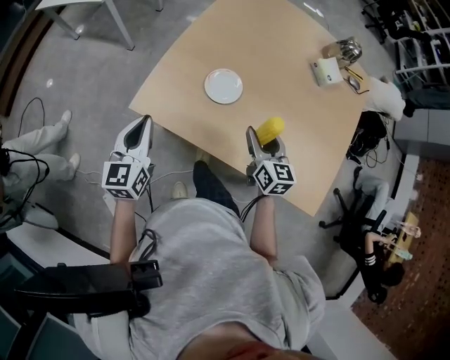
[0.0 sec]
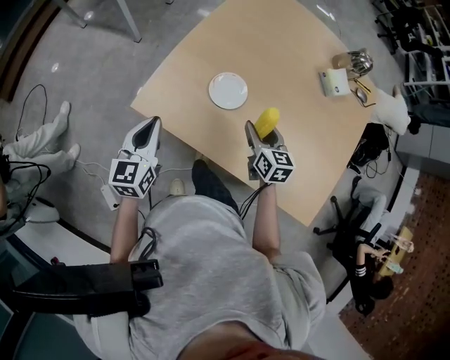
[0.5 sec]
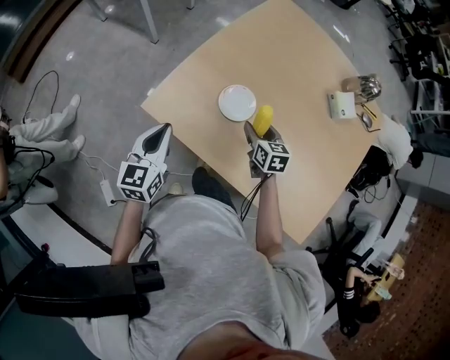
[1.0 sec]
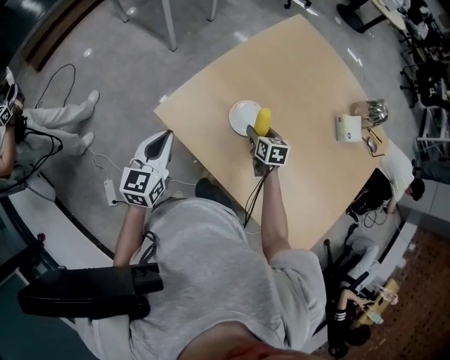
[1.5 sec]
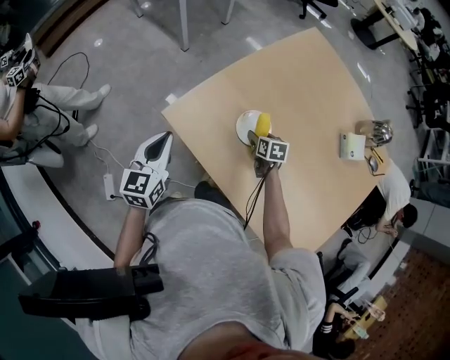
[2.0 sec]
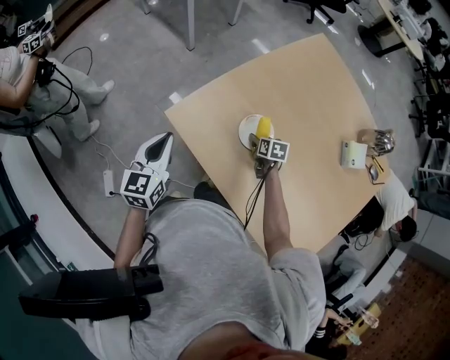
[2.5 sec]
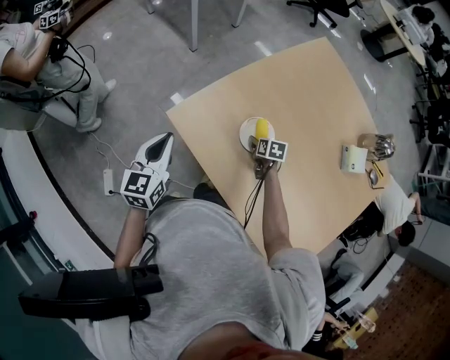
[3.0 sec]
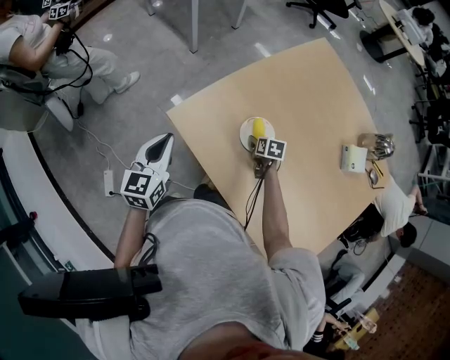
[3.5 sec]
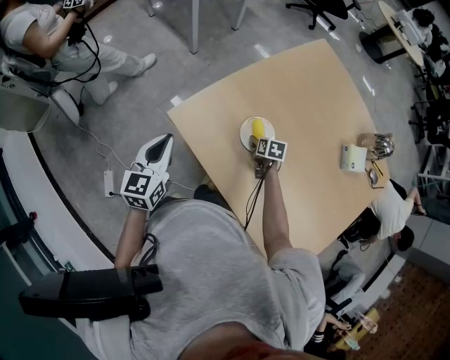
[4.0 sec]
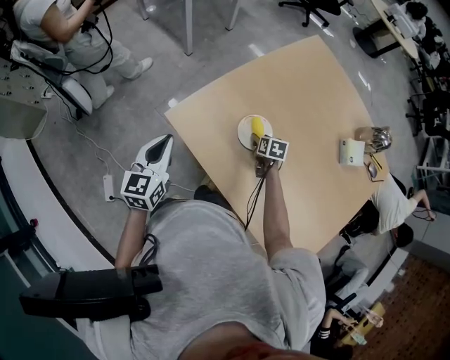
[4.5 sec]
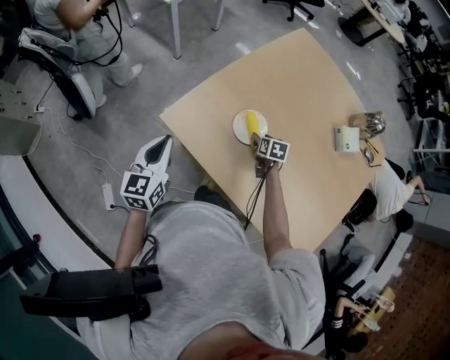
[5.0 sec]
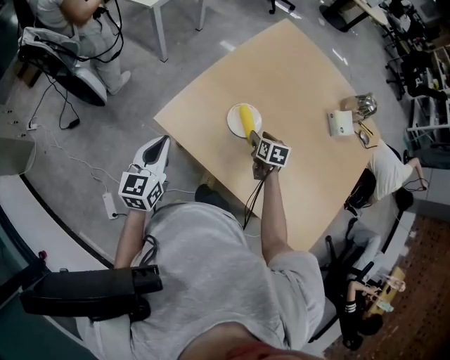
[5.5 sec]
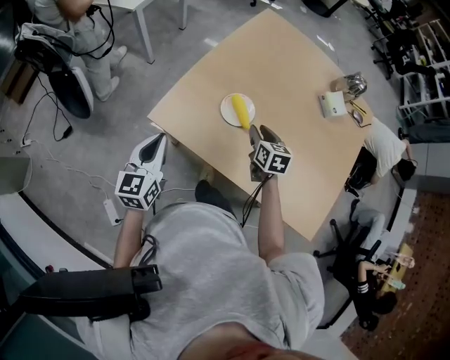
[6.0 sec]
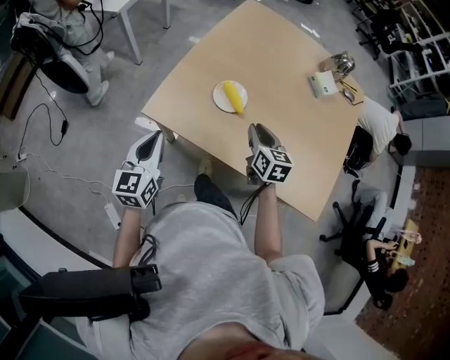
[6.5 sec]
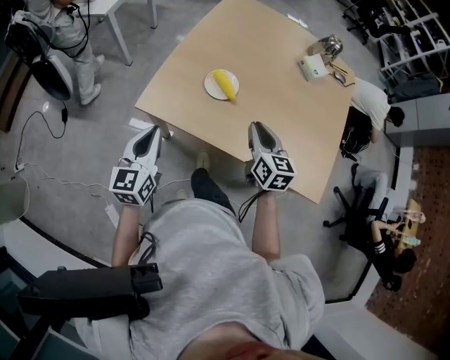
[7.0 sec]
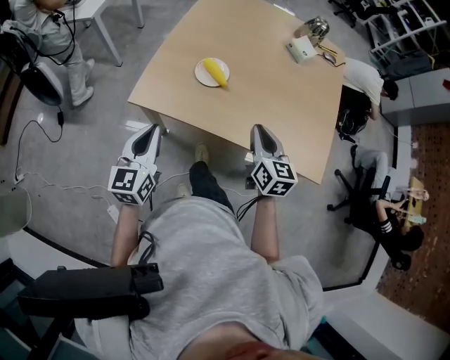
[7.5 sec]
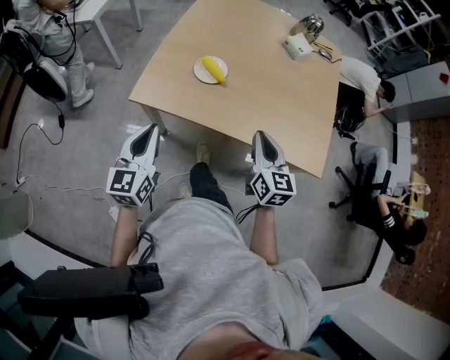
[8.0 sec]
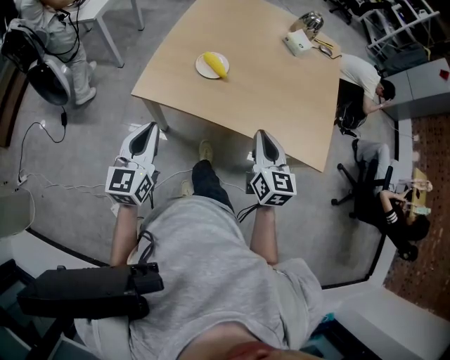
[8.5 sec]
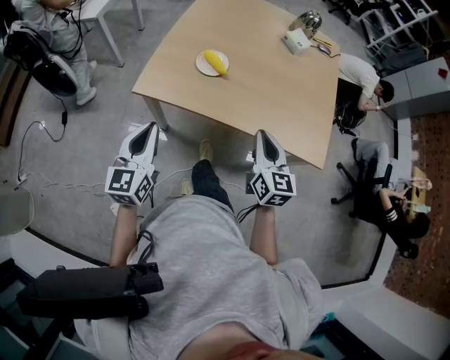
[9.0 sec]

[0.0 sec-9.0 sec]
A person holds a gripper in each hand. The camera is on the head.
0.0 sec to 2.0 sec: The right gripper travels downward and forward by some 25 cm, and tips its fingers downward by some 30 degrees.
2.0 sec to 4.5 sec: The grippers move only a little.
4.5 sec to 7.0 sec: The left gripper moves about 10 cm, and turns by approximately 20 degrees, while the right gripper goes some 25 cm upward, points its fingers roughly 40 degrees further upward, and closes its fingers.
7.0 sec to 9.0 sec: The left gripper is displaced backward by roughly 10 cm. The right gripper moves backward, roughly 15 cm.

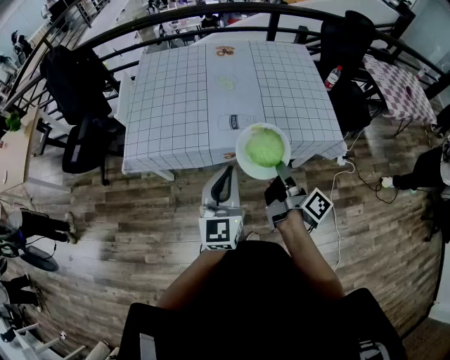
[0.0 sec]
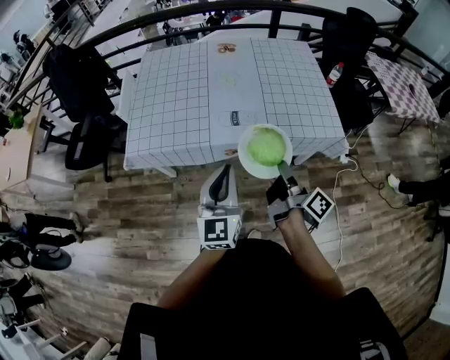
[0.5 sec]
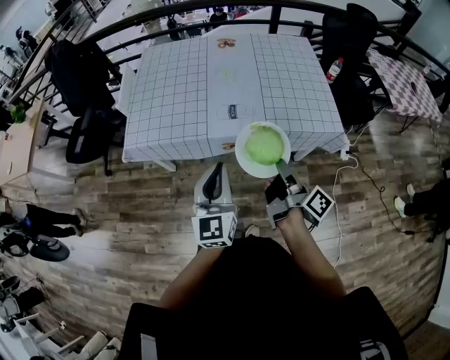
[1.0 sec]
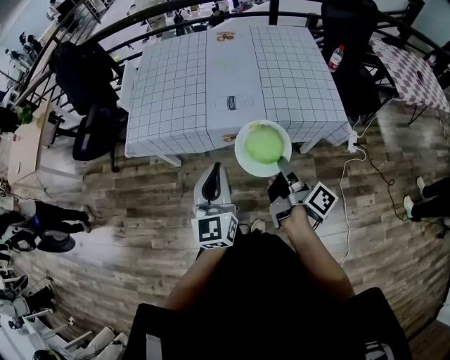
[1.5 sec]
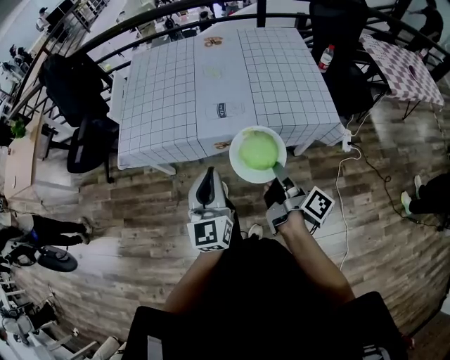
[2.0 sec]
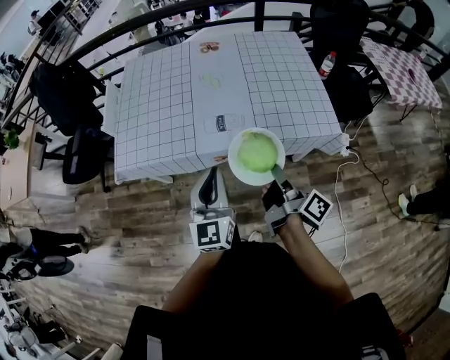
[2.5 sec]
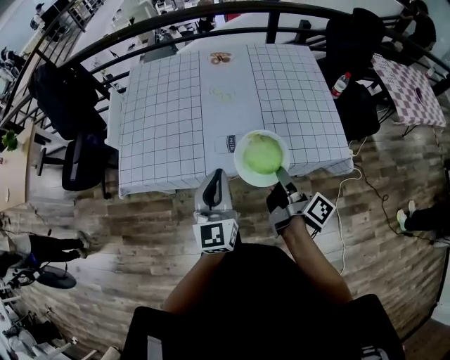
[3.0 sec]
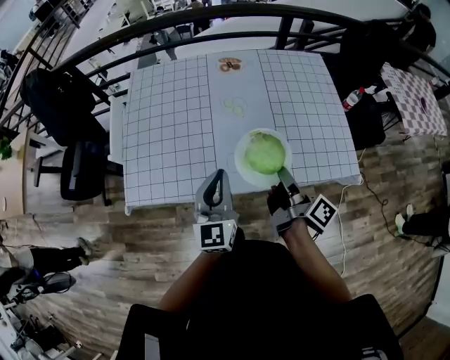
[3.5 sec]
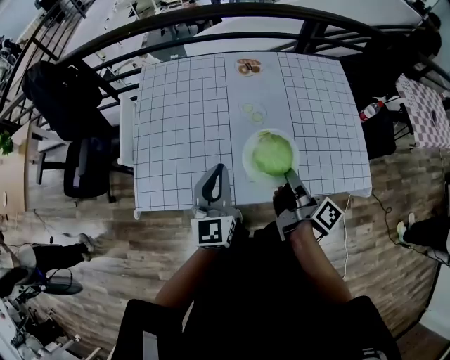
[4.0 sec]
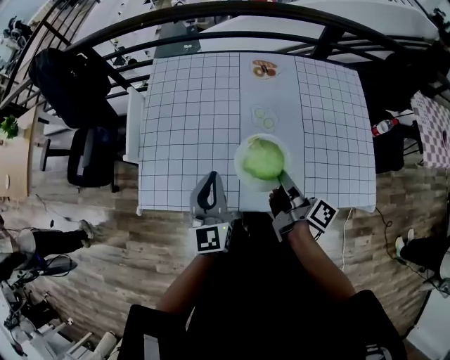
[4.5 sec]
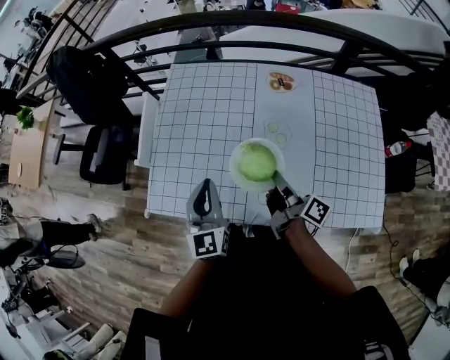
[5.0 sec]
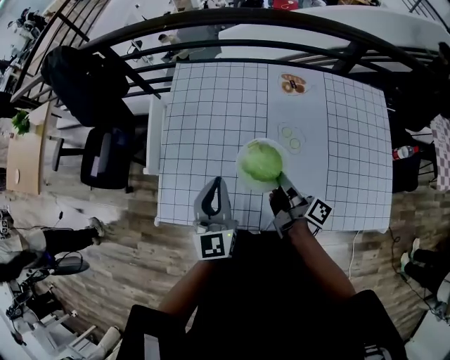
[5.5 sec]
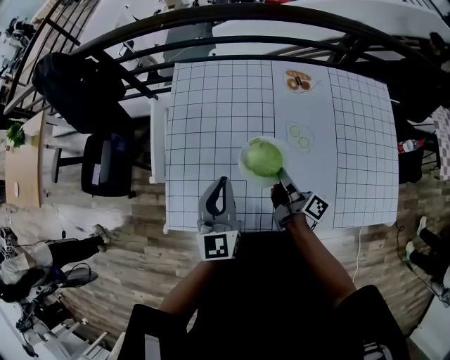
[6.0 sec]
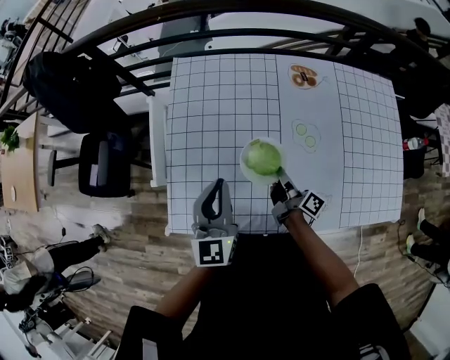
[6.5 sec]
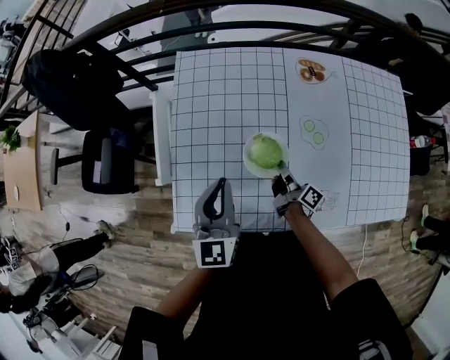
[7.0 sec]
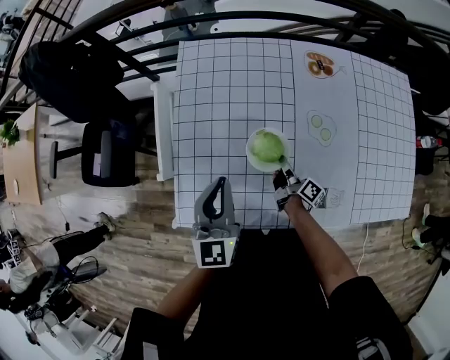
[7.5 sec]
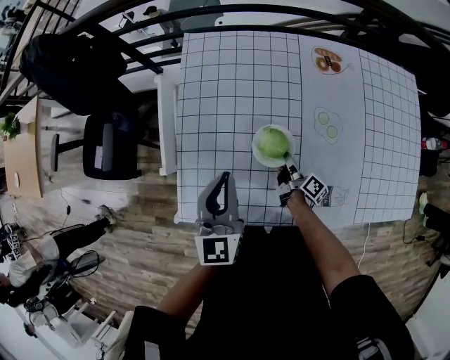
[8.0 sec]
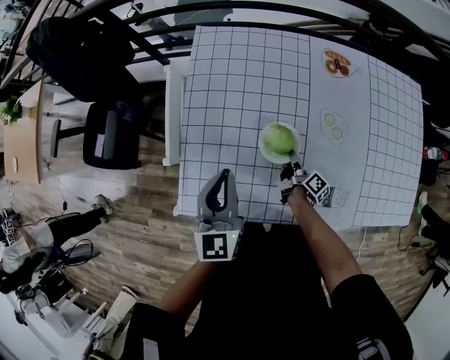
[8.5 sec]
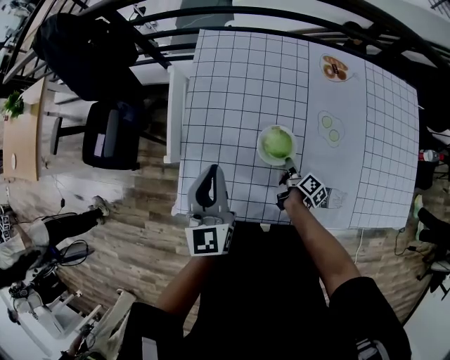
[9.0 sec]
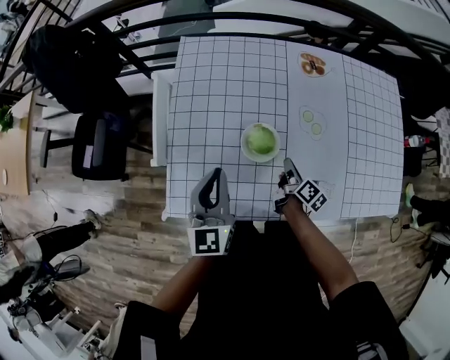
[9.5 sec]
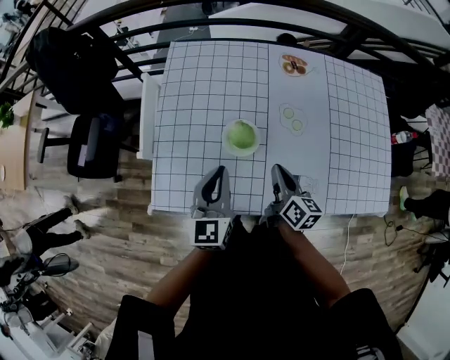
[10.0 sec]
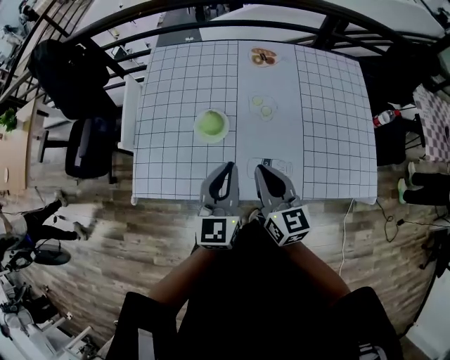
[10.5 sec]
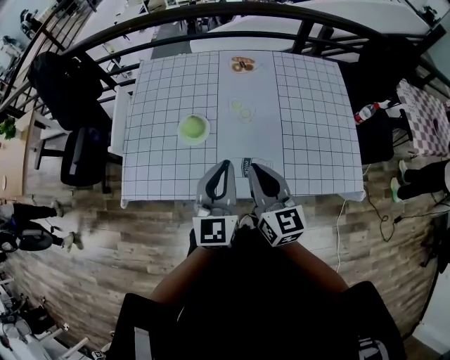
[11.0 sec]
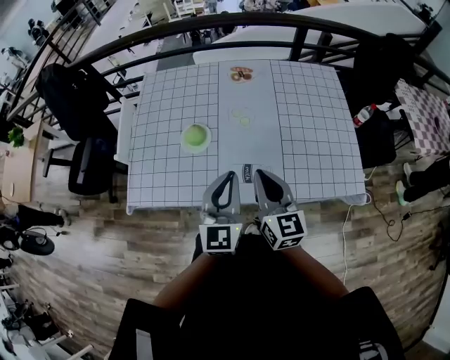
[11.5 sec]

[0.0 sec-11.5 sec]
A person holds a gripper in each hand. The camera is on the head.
0.0 sec to 2.0 sec: The left gripper ends up some 5 cm from where it was; the right gripper shifts approximately 10 cm to the right and backward.
2.0 sec to 4.0 sec: Both grippers travel together forward, approximately 35 cm.
4.0 sec to 6.0 sec: The right gripper is displaced forward, to the left and downward by roughly 25 cm. Meanwhile the left gripper travels forward and to the left by roughly 20 cm.
6.0 sec to 7.5 sec: The right gripper travels downward by approximately 15 cm; the left gripper shifts some 5 cm to the left.
7.5 sec to 9.5 sec: The right gripper moves roughly 5 cm.
9.5 sec to 11.5 sec: The right gripper is displaced upward, backward and to the right by approximately 35 cm, and rolls counterclockwise, seen from behind, by some 50 degrees. Meanwhile the left gripper shifts roughly 35 cm to the right and backward.

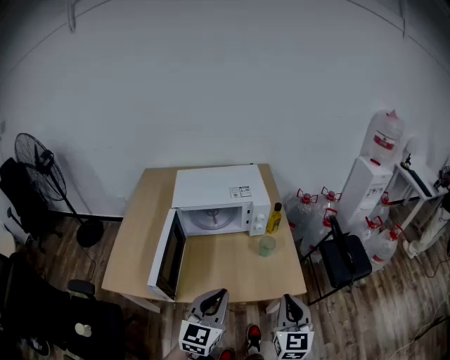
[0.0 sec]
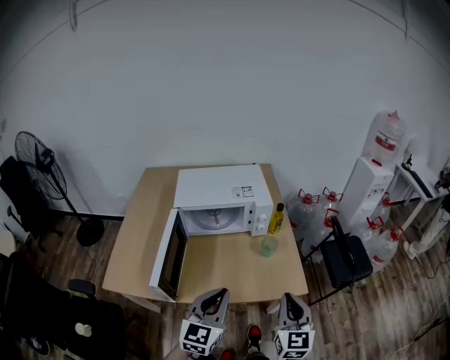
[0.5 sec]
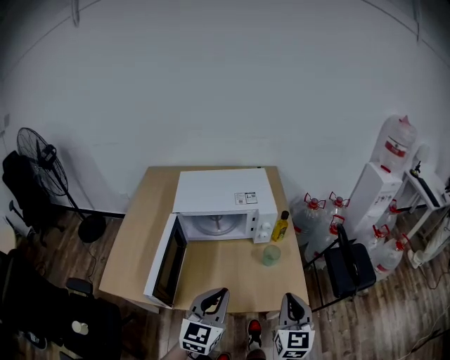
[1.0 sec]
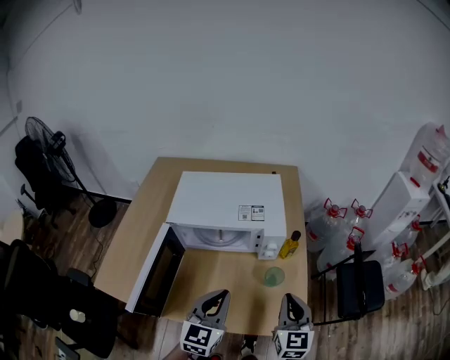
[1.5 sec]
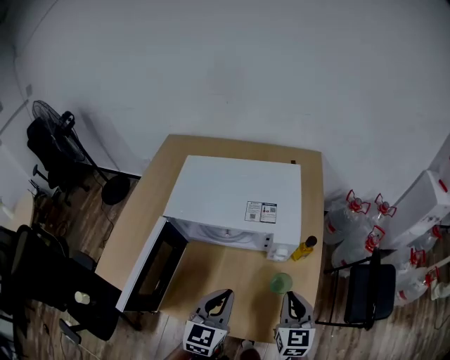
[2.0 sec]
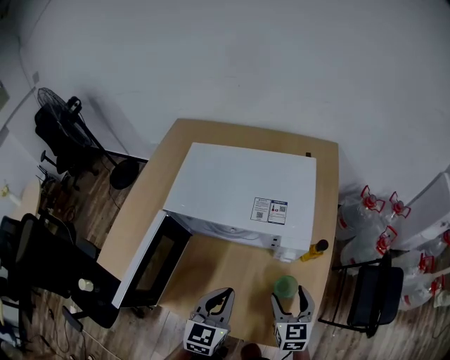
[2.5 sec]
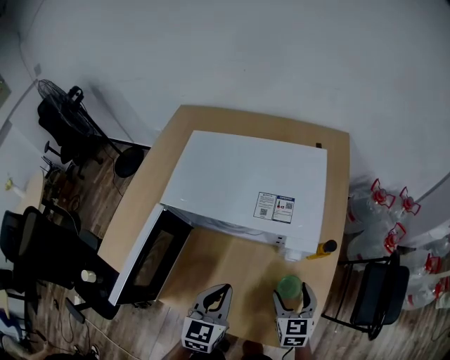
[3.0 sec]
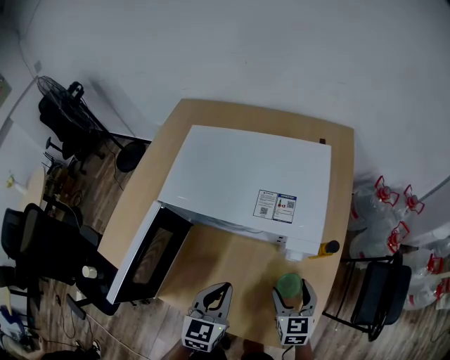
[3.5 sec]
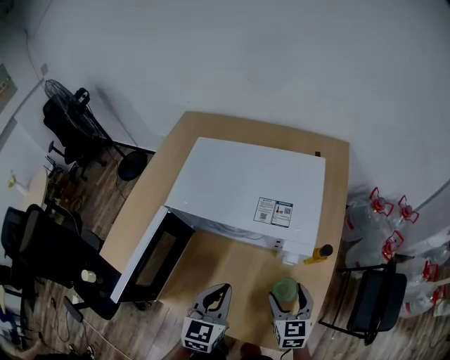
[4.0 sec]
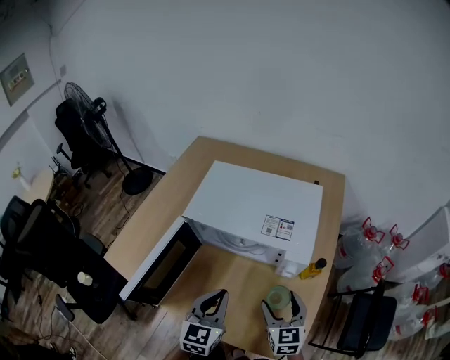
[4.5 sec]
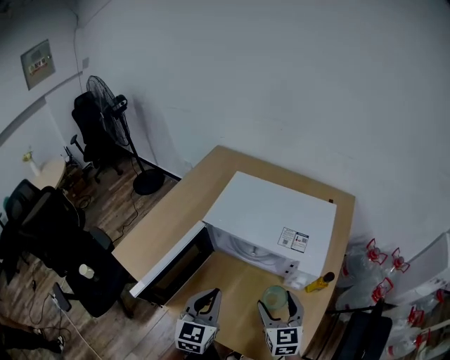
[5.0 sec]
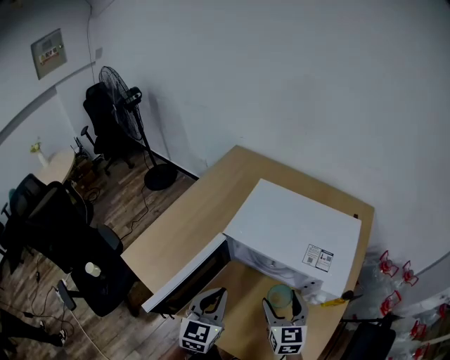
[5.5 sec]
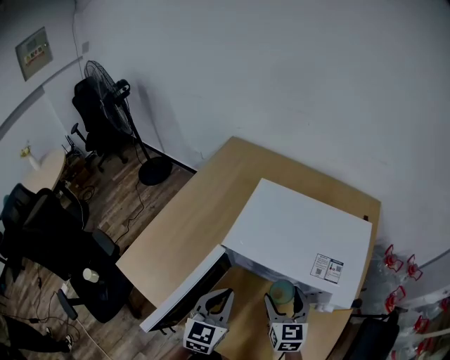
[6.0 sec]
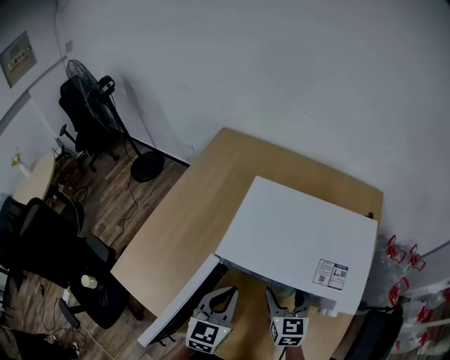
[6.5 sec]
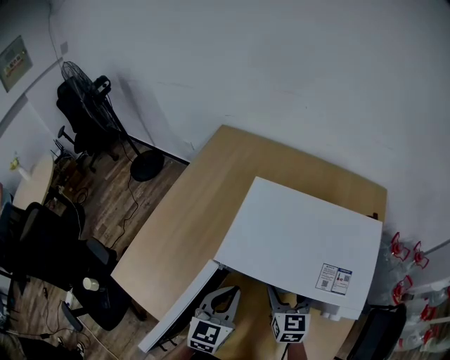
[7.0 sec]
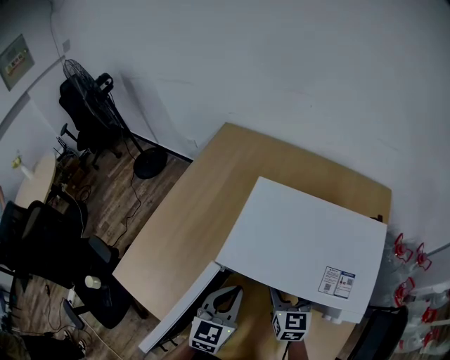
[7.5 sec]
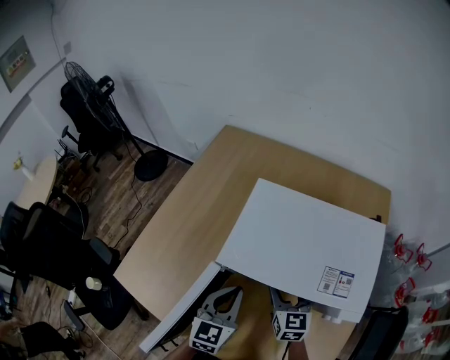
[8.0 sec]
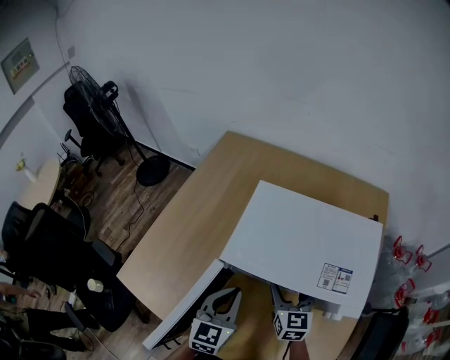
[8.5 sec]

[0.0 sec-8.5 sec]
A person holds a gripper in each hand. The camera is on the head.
0.0 sec to 2.0 sec: Both grippers travel together forward and downward, some 25 cm. The left gripper changes its angle by approximately 20 degrees. The right gripper rotates approximately 20 degrees.
2.0 sec to 4.0 sec: The left gripper changes place by some 5 cm; the right gripper shifts about 10 cm downward, and opens up.
4.0 sec to 6.5 sec: The grippers both shift forward and to the left by approximately 20 cm.
6.5 sec to 8.5 sec: The grippers make only small movements.
